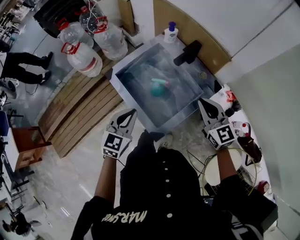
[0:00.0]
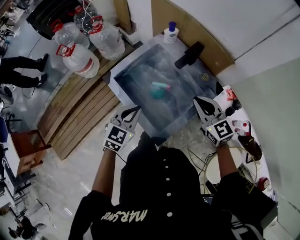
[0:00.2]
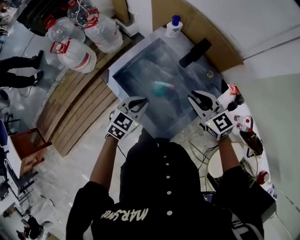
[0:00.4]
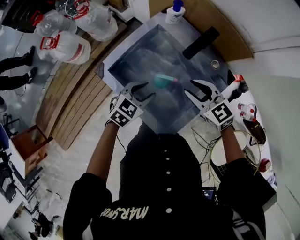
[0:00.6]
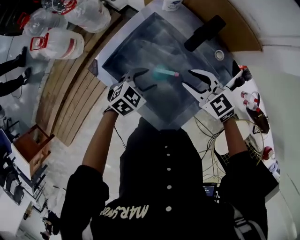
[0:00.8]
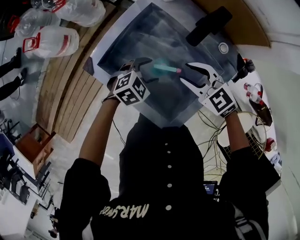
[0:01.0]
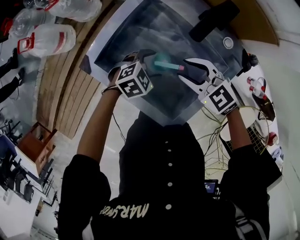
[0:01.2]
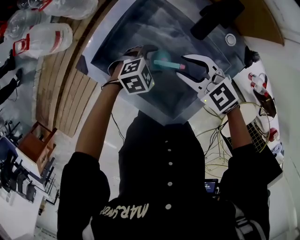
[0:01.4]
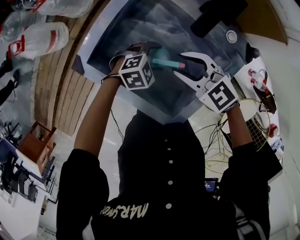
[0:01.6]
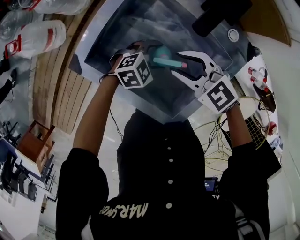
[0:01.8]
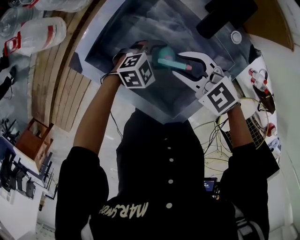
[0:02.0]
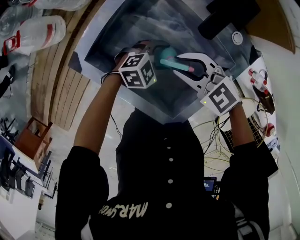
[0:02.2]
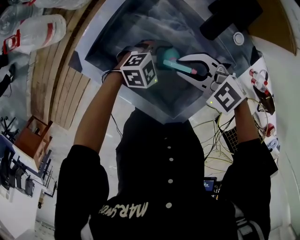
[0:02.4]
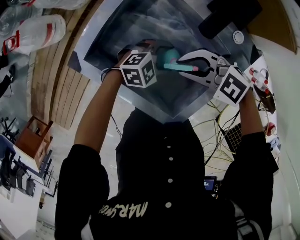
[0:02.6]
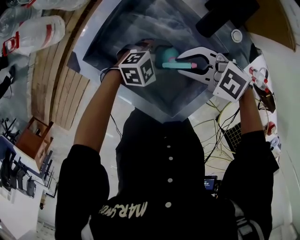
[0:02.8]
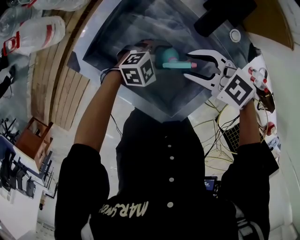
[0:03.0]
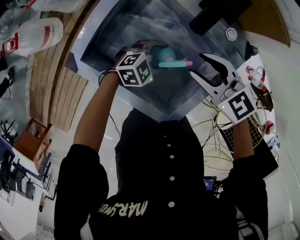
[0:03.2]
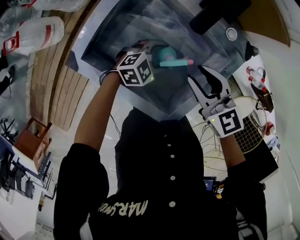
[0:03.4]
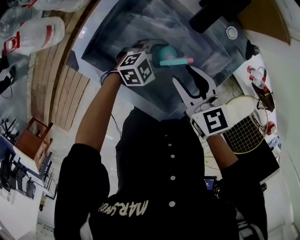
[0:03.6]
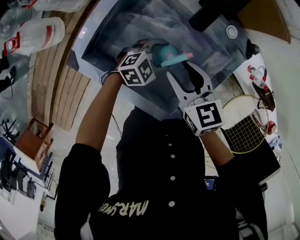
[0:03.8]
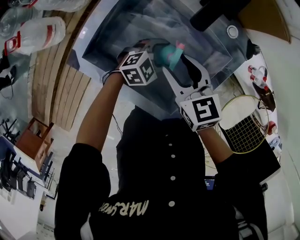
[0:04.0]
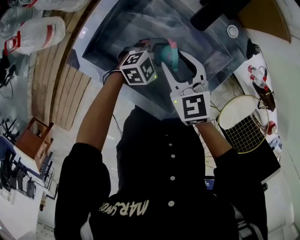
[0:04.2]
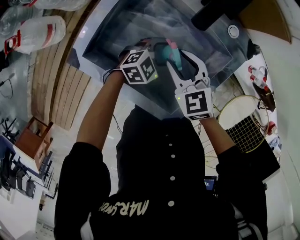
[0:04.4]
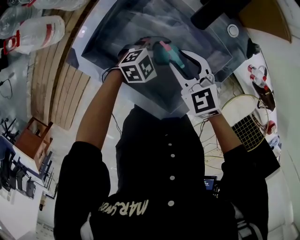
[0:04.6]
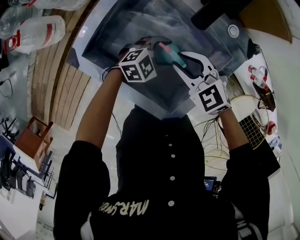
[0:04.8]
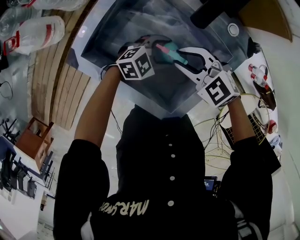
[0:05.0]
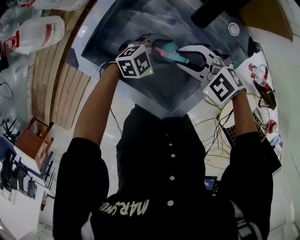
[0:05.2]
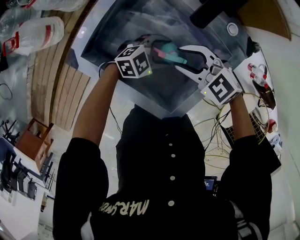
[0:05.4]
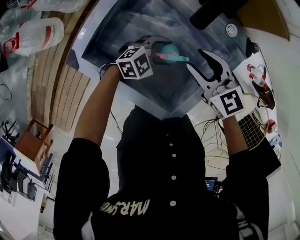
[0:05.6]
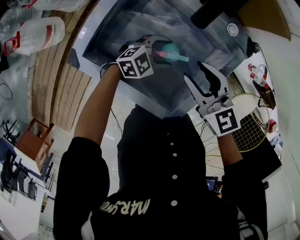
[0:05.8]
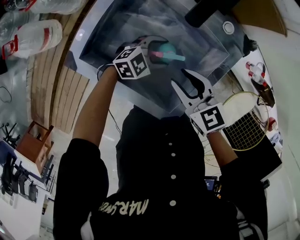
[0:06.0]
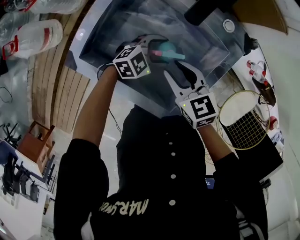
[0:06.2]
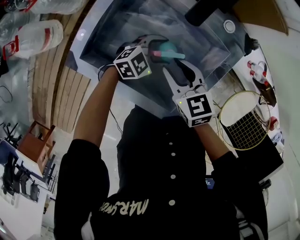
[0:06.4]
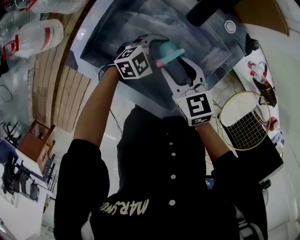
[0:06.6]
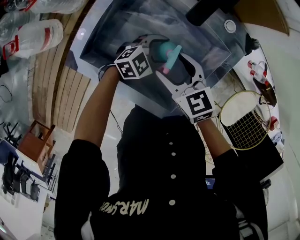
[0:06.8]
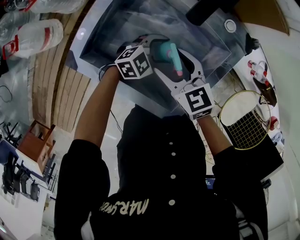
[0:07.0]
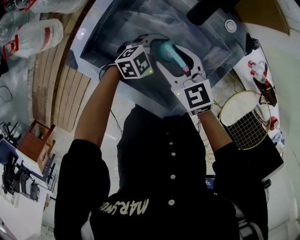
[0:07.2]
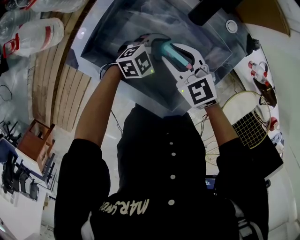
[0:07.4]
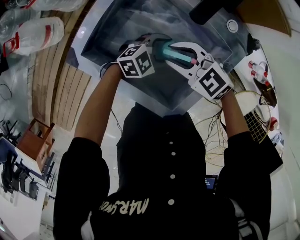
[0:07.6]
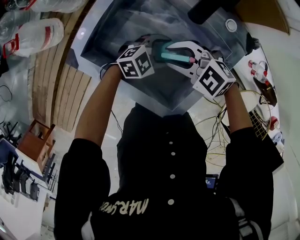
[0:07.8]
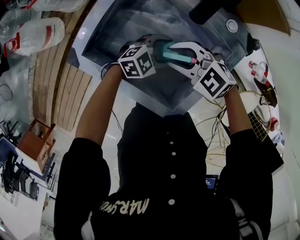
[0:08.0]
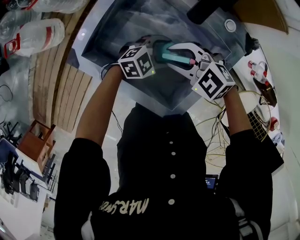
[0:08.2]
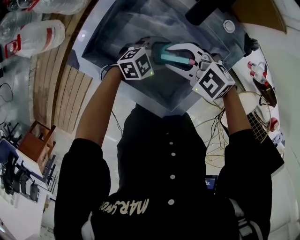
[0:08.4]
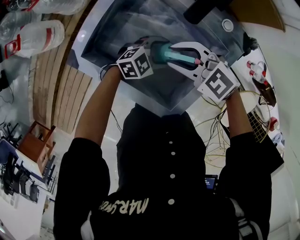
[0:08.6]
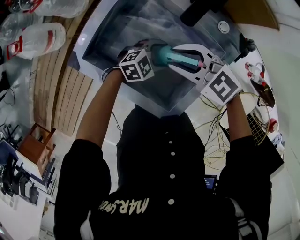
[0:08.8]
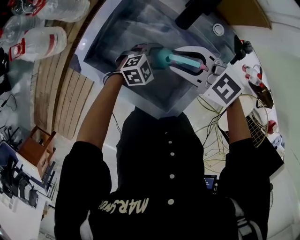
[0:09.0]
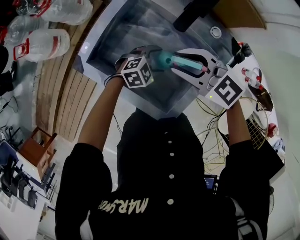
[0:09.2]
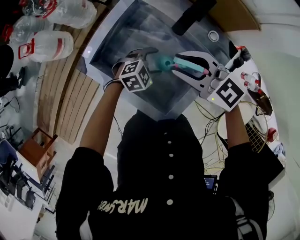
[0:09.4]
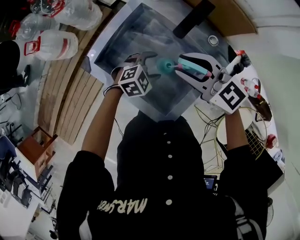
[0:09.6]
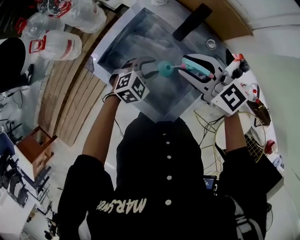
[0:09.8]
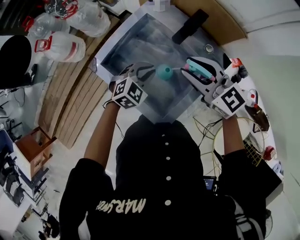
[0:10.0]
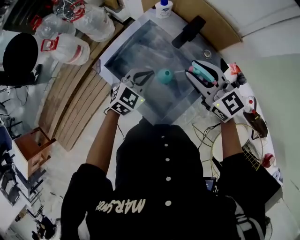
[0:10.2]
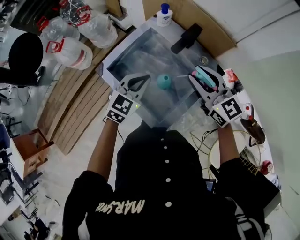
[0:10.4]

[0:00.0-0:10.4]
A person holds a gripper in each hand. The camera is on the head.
0:00.0 to 0:01.4: Both grippers move downward, approximately 25 cm. The right gripper changes its angle by approximately 30 degrees, and opens its fingers, while the left gripper angles its fingers downward, by roughly 30 degrees, and opens.
0:01.4 to 0:03.0: The left gripper ends up roughly 5 cm from where it was.
0:03.0 to 0:04.4: The right gripper swivels roughly 40 degrees.
0:04.4 to 0:06.0: The right gripper shifts by roughly 5 cm, and rotates about 20 degrees.
0:06.0 to 0:07.4: The right gripper changes place by about 10 cm, and opens, then closes once more.
0:07.4 to 0:09.0: The right gripper is displaced upward by approximately 10 cm, and changes its angle by about 20 degrees.
0:09.0 to 0:10.4: The left gripper travels upward by approximately 25 cm, changes its angle by some 50 degrees, and closes its fingers, while the right gripper shifts approximately 15 cm upward, and swivels roughly 30 degrees.

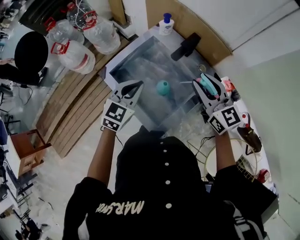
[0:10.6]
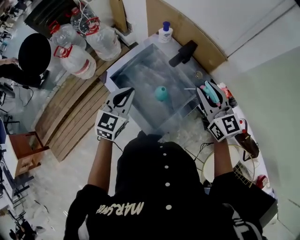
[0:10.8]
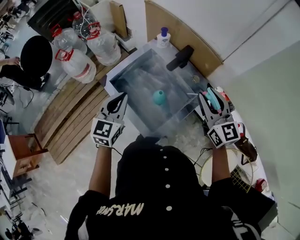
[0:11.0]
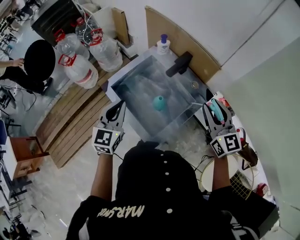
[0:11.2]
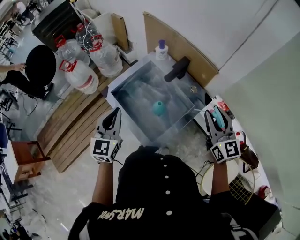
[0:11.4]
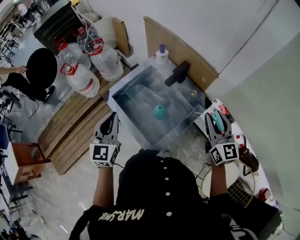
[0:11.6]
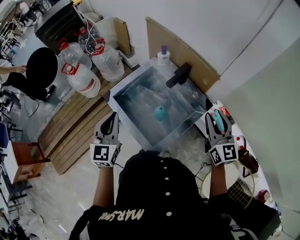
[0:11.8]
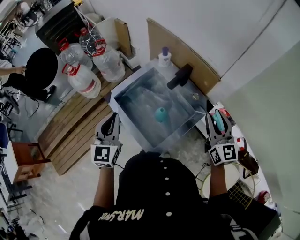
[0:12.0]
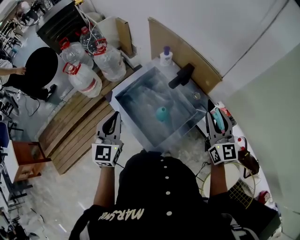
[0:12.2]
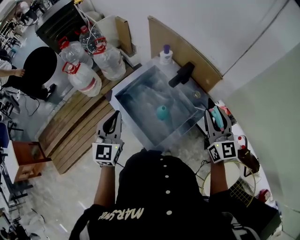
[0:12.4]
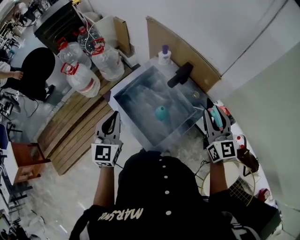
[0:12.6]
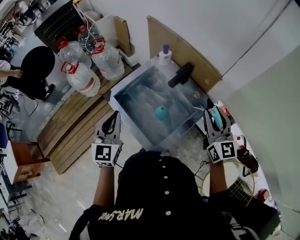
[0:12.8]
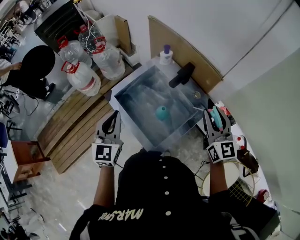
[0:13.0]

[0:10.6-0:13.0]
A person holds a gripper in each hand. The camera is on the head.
0:10.6 to 0:11.8: The left gripper goes roughly 15 cm upward, to the left and backward, and rotates roughly 30 degrees, while the right gripper moves to the right and backward, roughly 10 cm.
0:11.8 to 0:13.0: The grippers stay close to where they were, moving slightly.

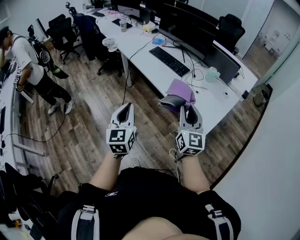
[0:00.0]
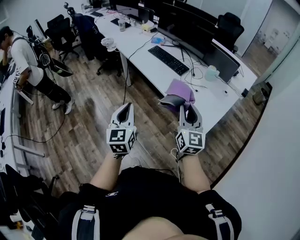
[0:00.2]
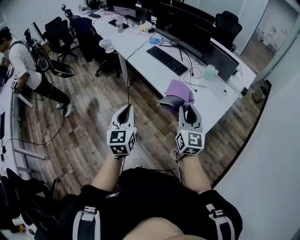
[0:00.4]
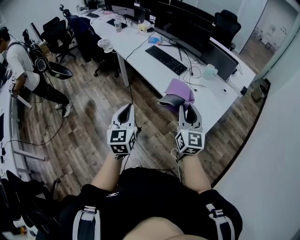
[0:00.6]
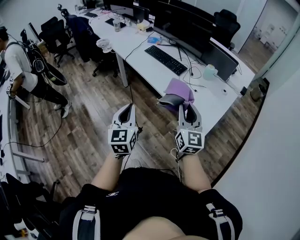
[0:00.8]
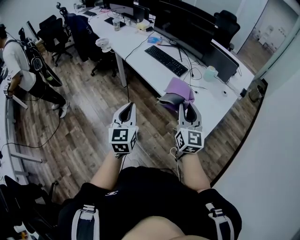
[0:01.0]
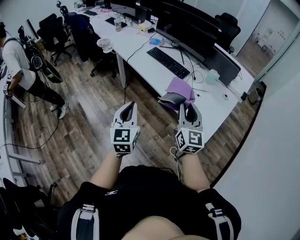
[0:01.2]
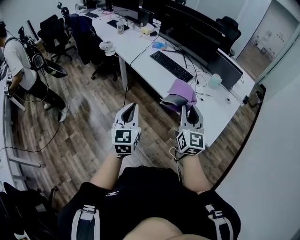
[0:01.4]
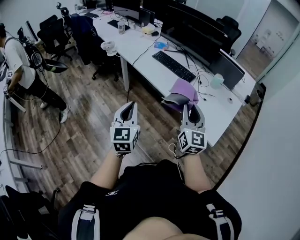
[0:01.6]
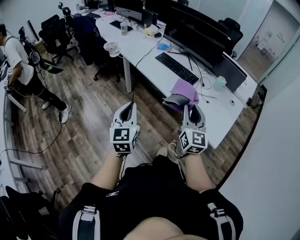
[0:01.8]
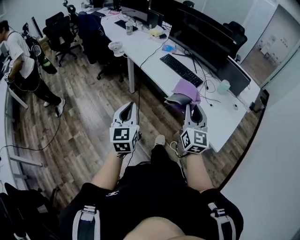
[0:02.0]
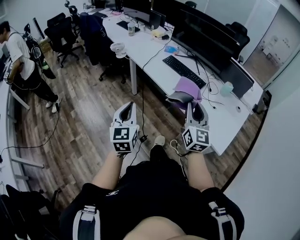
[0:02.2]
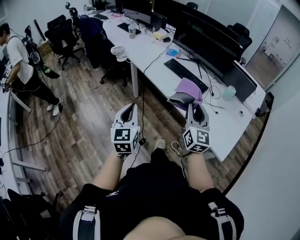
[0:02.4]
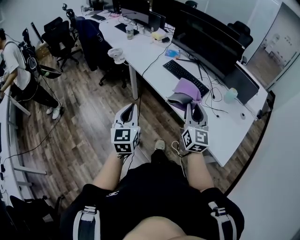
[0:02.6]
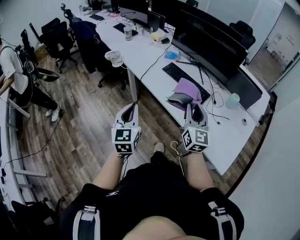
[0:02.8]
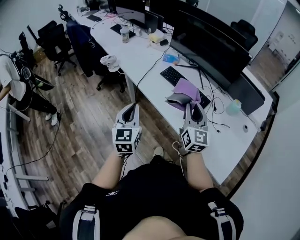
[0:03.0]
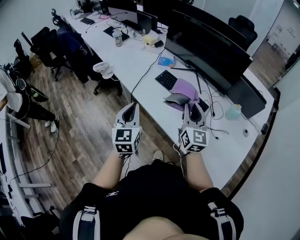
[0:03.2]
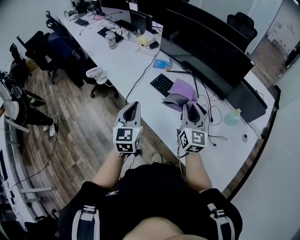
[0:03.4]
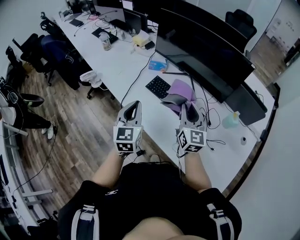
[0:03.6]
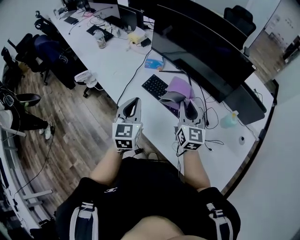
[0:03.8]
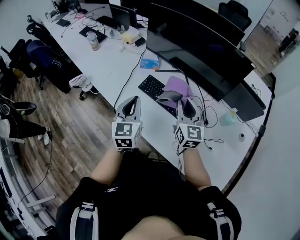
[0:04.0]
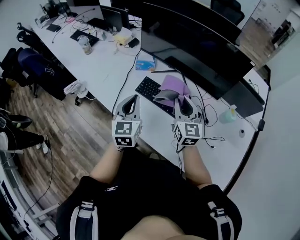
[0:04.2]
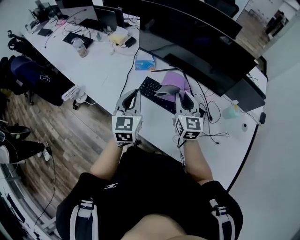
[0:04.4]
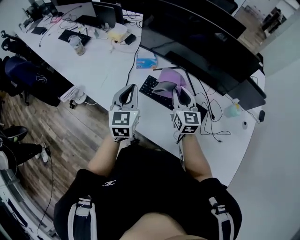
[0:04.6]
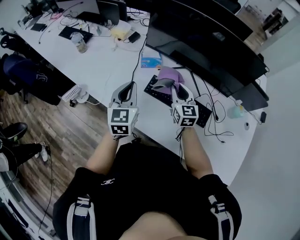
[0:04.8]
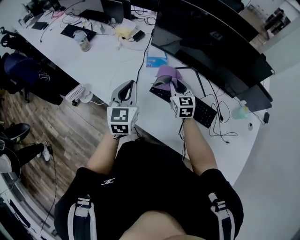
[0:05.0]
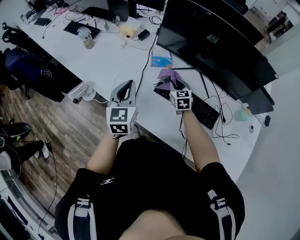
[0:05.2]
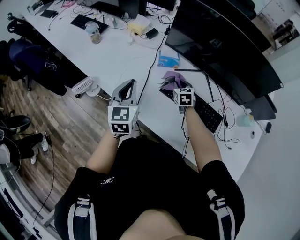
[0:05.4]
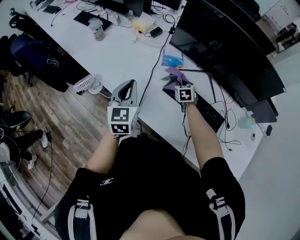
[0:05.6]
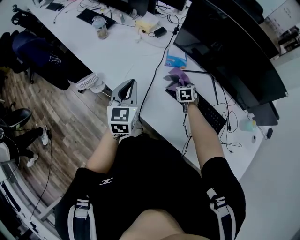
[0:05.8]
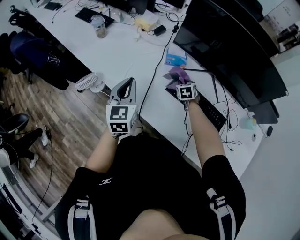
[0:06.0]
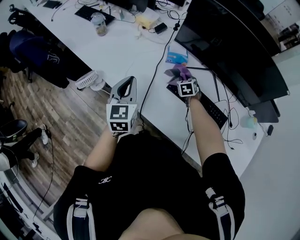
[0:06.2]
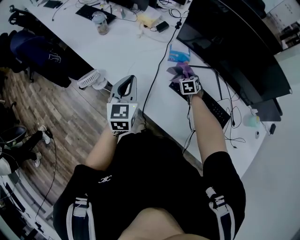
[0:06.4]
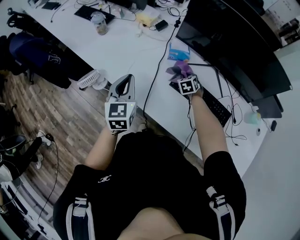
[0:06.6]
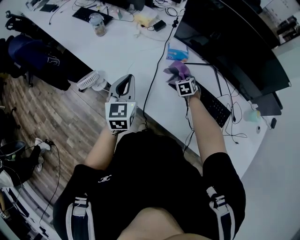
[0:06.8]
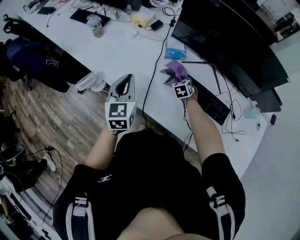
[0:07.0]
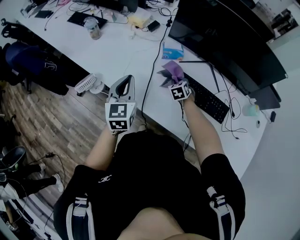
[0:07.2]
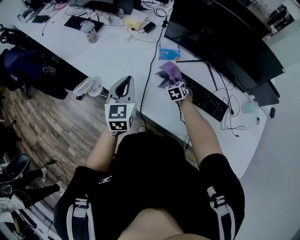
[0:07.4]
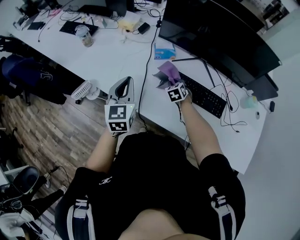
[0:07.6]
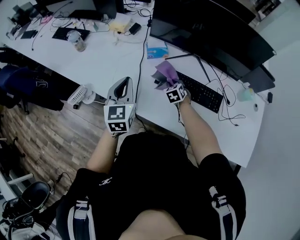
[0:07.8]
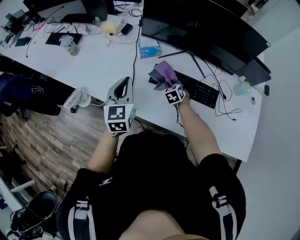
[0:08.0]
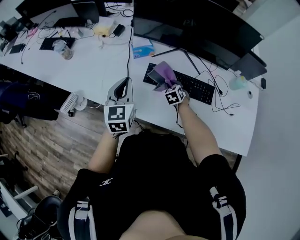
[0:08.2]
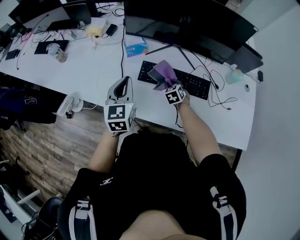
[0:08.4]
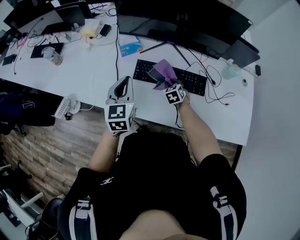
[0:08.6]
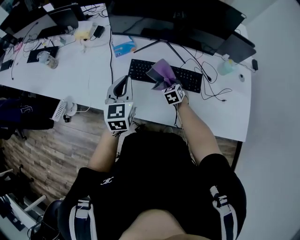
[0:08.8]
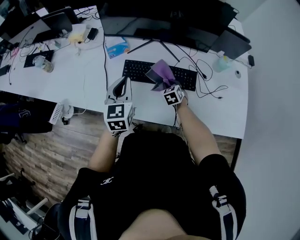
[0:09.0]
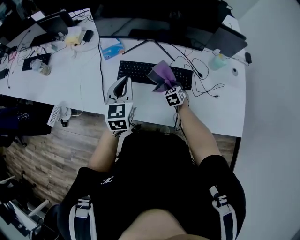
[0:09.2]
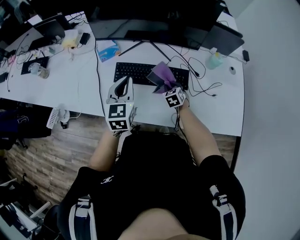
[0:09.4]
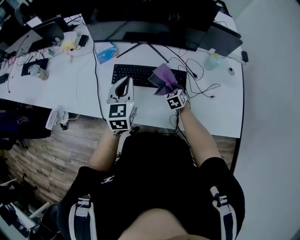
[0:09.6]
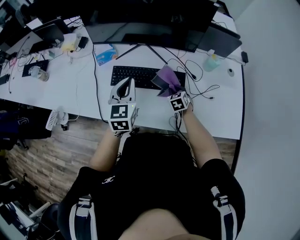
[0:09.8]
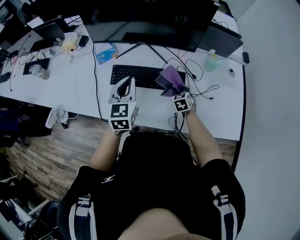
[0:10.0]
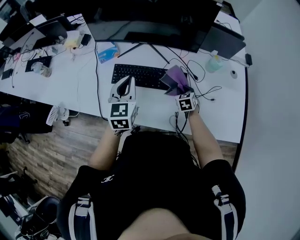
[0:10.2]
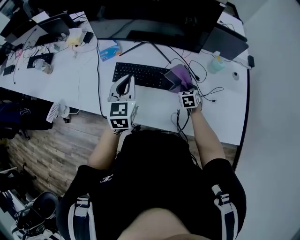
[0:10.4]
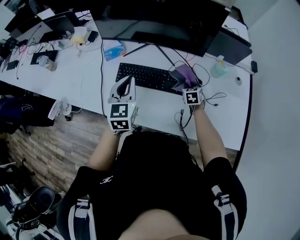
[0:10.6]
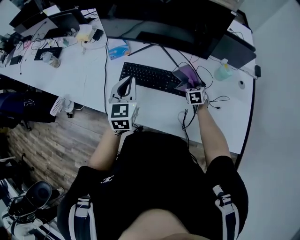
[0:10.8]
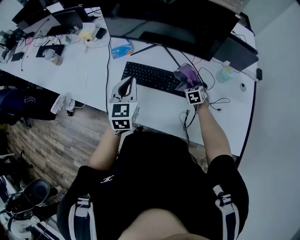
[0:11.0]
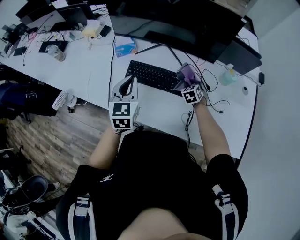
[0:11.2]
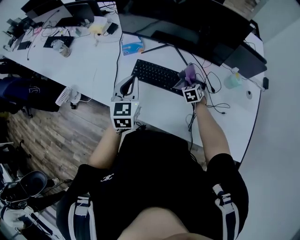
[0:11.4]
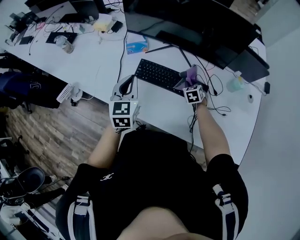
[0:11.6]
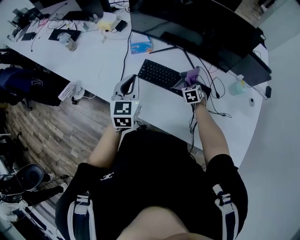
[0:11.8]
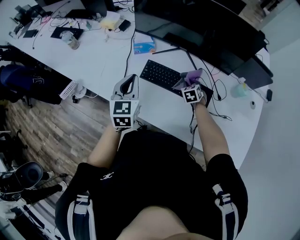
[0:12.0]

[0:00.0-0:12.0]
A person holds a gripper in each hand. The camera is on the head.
0:00.0 to 0:01.6: The grippers both shift to the left and forward by about 15 cm.
0:01.6 to 0:03.0: Both grippers travel together forward, some 30 cm.
0:03.0 to 0:04.4: The grippers both shift forward by about 40 cm.
0:04.4 to 0:06.0: The right gripper is displaced downward, forward and to the left by roughly 35 cm, and points its fingers approximately 40 degrees further downward, while the left gripper shifts roughly 25 cm to the left.
0:06.0 to 0:07.6: The right gripper heads backward, covering approximately 5 cm.
0:07.6 to 0:09.0: Both grippers travel together to the right, some 20 cm.
0:09.0 to 0:10.4: The right gripper goes about 20 cm to the right. The left gripper moves to the right, approximately 10 cm.
0:10.4 to 0:12.0: The right gripper moves to the left and forward, some 20 cm, while the left gripper heads to the left, covering approximately 15 cm.
